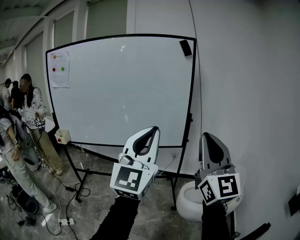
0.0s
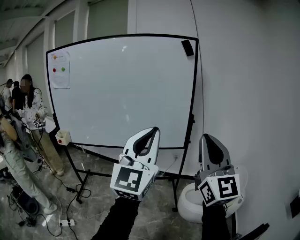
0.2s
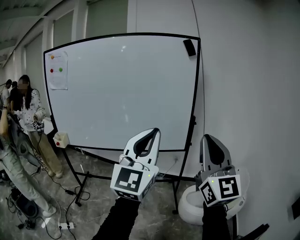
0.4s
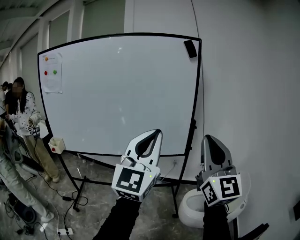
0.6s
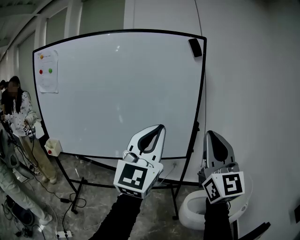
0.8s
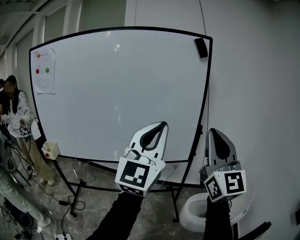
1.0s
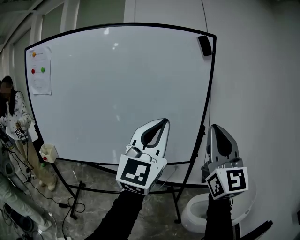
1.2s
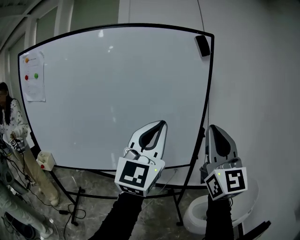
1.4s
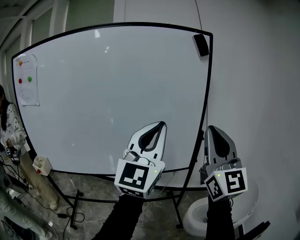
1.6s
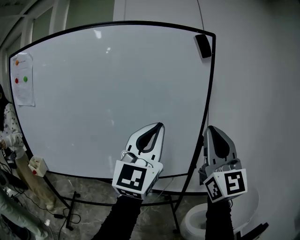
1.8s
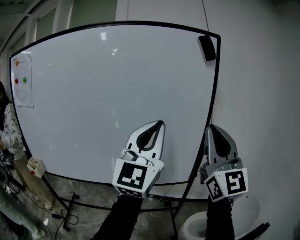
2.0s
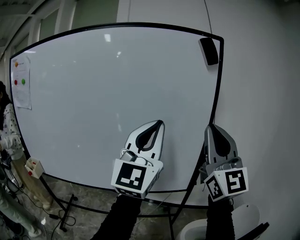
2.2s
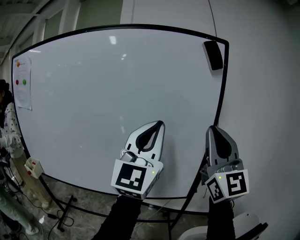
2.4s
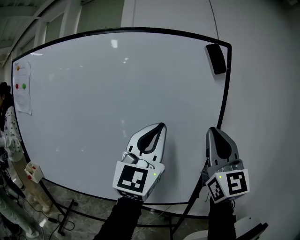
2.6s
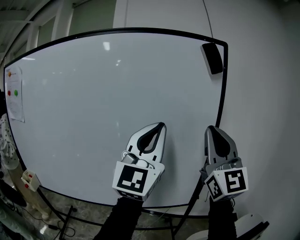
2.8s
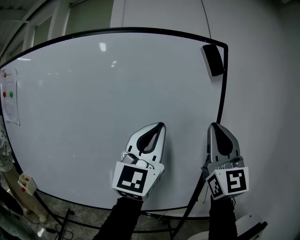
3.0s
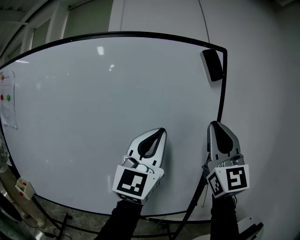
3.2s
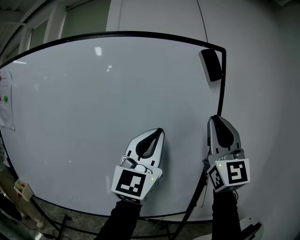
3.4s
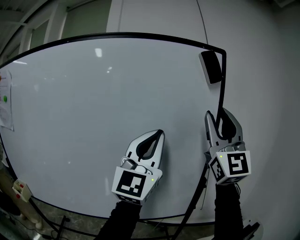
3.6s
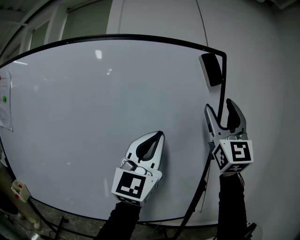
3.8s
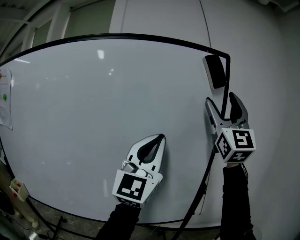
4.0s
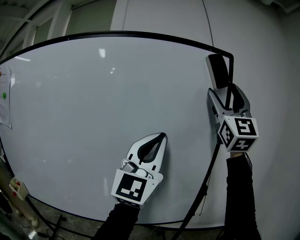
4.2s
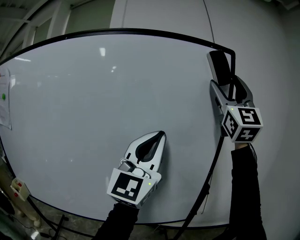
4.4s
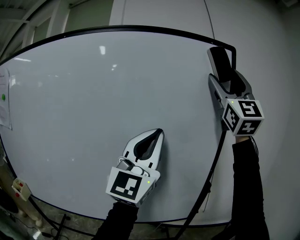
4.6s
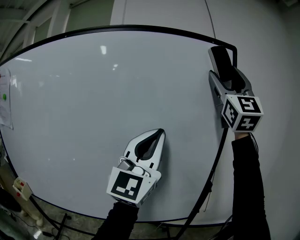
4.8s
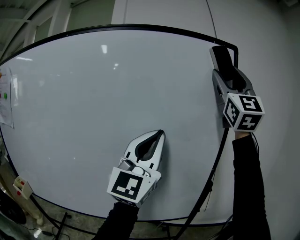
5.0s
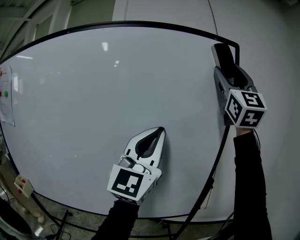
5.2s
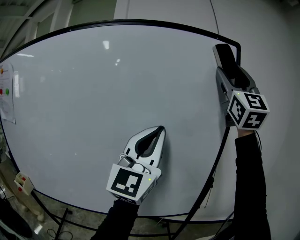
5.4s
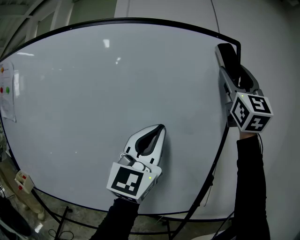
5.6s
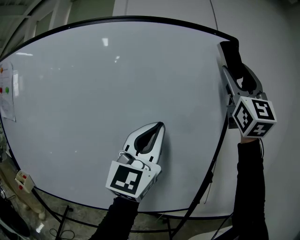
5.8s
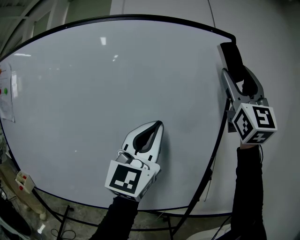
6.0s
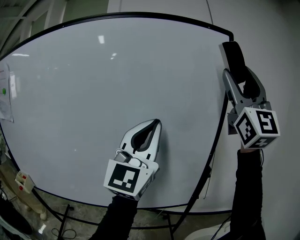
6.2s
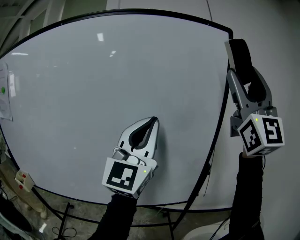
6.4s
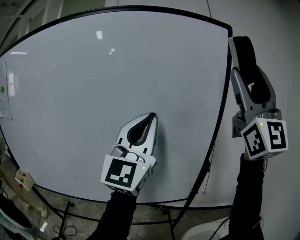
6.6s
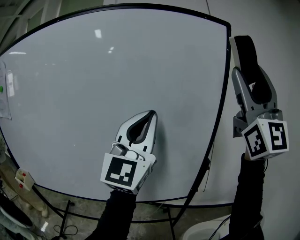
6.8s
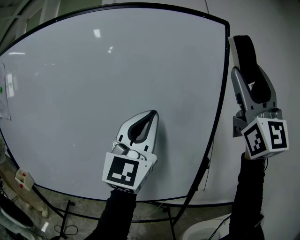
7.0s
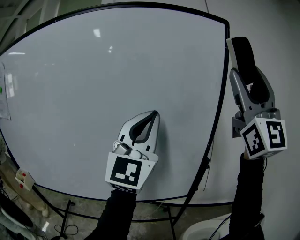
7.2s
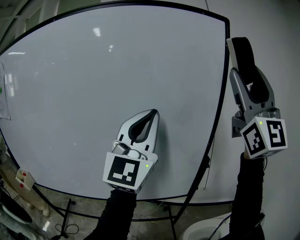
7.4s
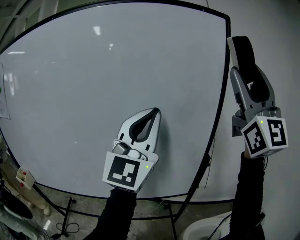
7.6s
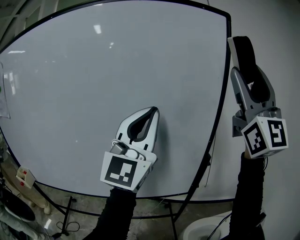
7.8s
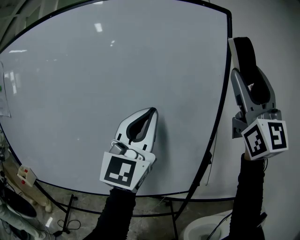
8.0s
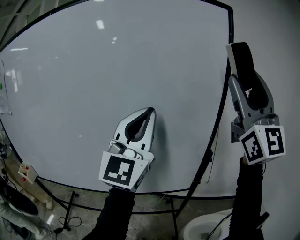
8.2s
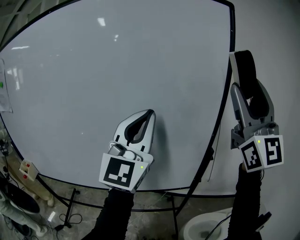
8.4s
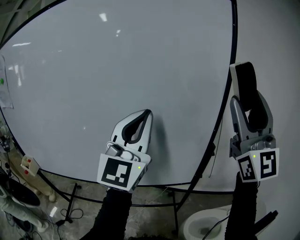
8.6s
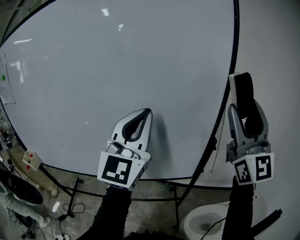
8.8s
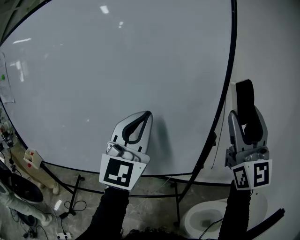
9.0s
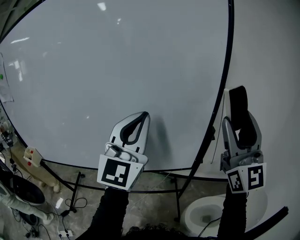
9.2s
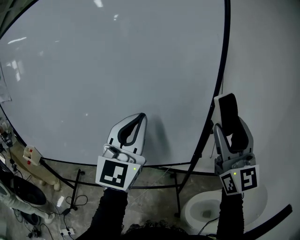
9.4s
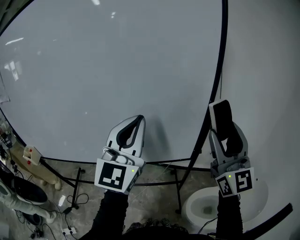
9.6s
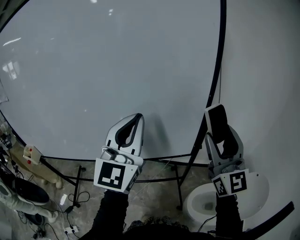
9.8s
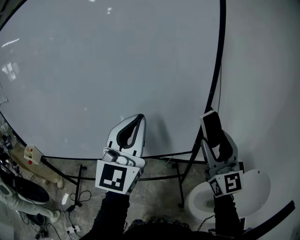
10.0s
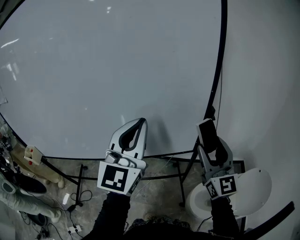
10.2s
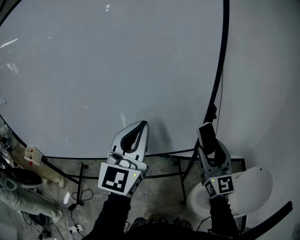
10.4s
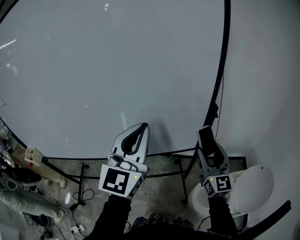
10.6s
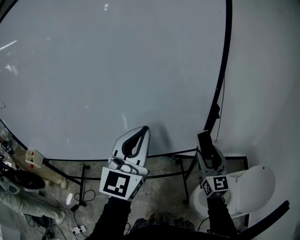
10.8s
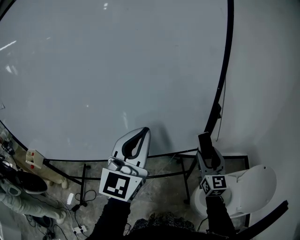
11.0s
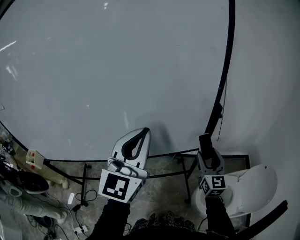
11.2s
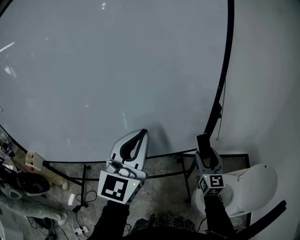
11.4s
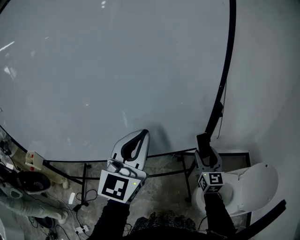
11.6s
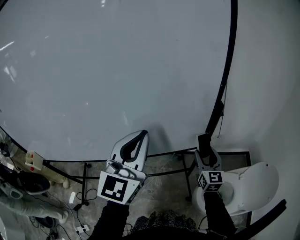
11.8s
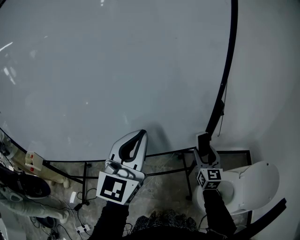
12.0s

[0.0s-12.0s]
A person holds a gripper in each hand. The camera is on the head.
0.0s to 1.6s: The grippers both shift forward by roughly 25 cm.
1.6s to 3.0s: Both grippers move forward, about 20 cm.
3.0s to 4.4s: The right gripper heads upward and forward, covering roughly 20 cm, and opens up.
4.4s to 6.0s: The right gripper travels backward by roughly 5 cm.
6.0s to 7.6s: The right gripper changes place by roughly 5 cm.
7.6s to 9.0s: The left gripper is displaced downward by some 10 cm, while the right gripper shifts some 20 cm downward.
9.0s to 10.4s: The right gripper goes roughly 25 cm downward, and turns by about 30 degrees. Meanwhile the left gripper heads downward, covering about 10 cm.
10.4s to 12.0s: The right gripper heads downward and forward, covering about 20 cm, and changes its angle by about 20 degrees.

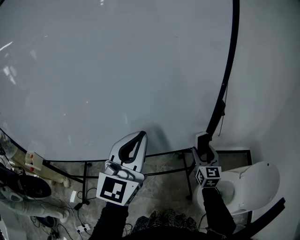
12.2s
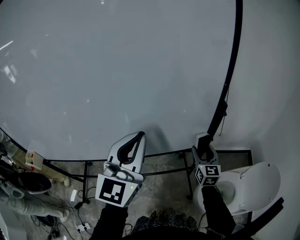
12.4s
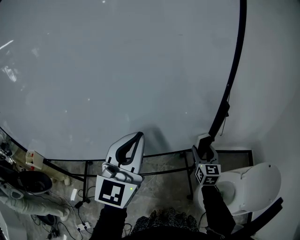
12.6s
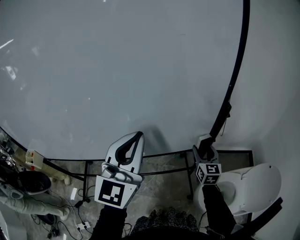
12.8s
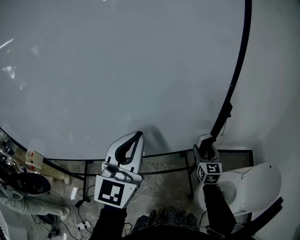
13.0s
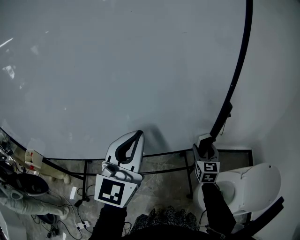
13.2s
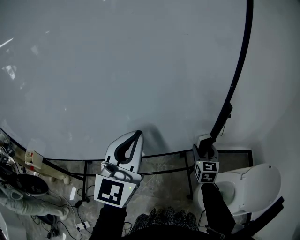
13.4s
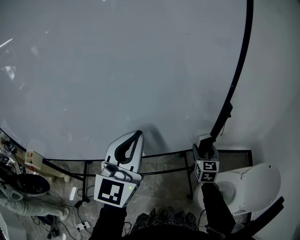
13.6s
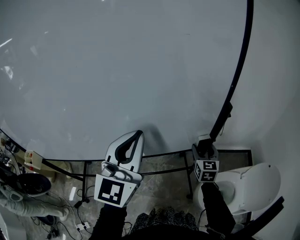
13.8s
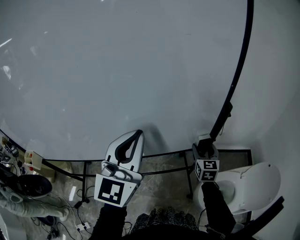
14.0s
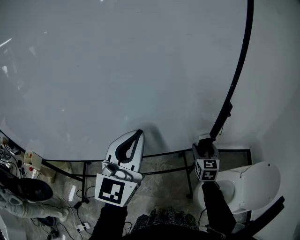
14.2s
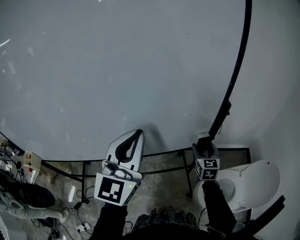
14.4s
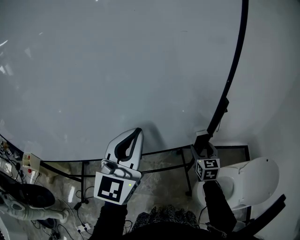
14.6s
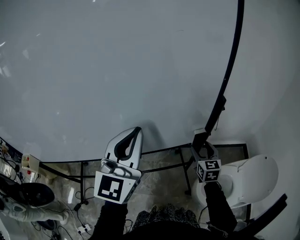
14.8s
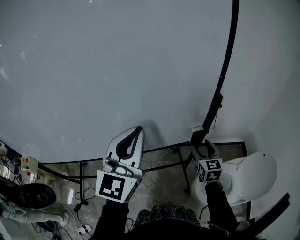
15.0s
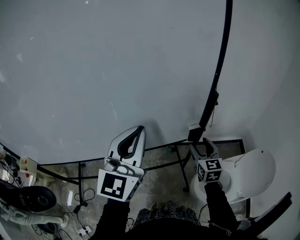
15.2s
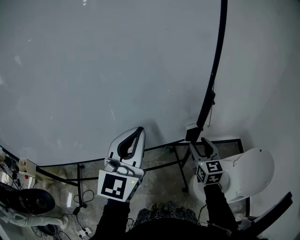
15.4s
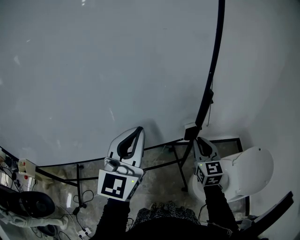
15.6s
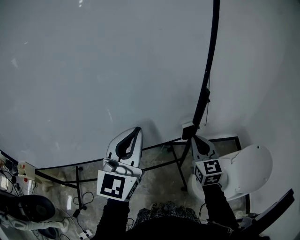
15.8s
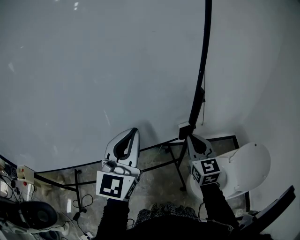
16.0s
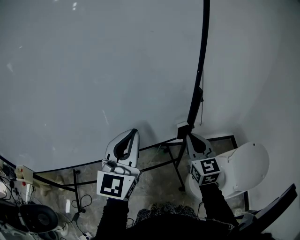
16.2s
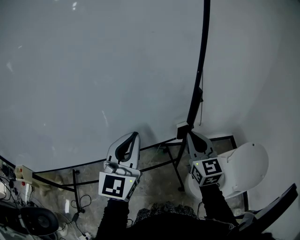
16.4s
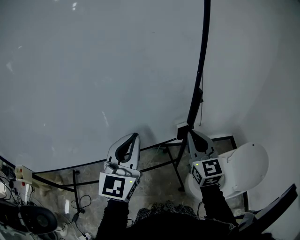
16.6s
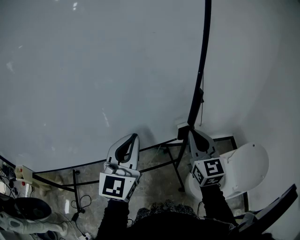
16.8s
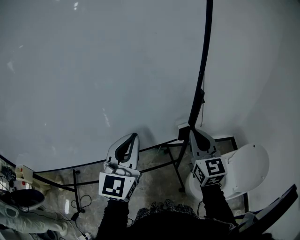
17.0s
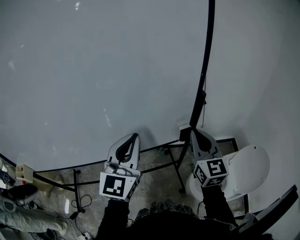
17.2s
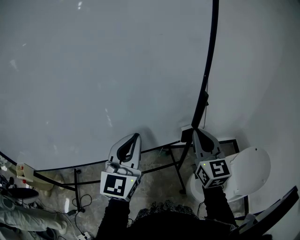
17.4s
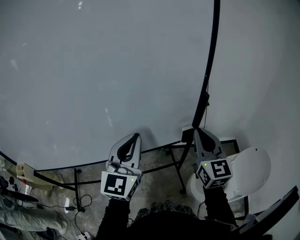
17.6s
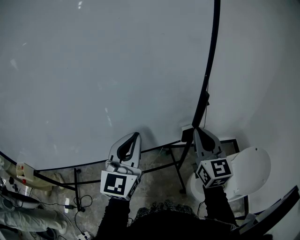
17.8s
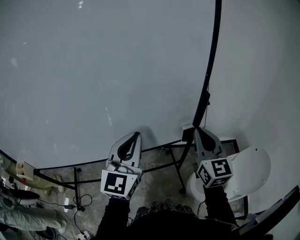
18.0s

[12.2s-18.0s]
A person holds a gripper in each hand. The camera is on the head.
12.2s to 13.6s: The grippers stay close to where they were, moving slightly.
13.6s to 15.0s: The right gripper shifts by about 5 cm.
15.0s to 16.6s: The right gripper heads upward, covering roughly 15 cm, and closes.
16.6s to 18.0s: There are only small adjustments of the grippers.

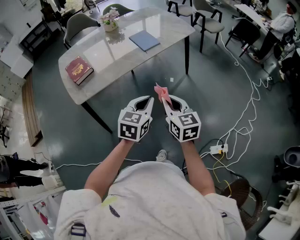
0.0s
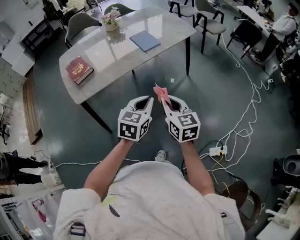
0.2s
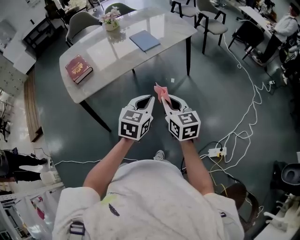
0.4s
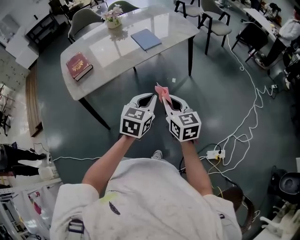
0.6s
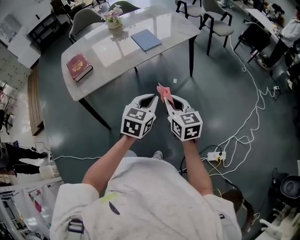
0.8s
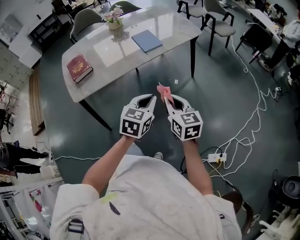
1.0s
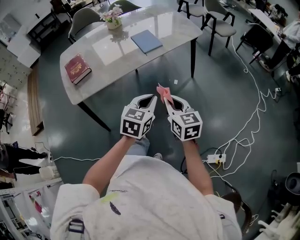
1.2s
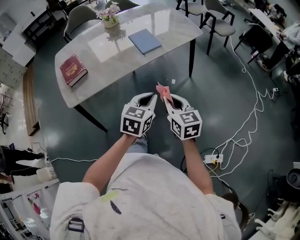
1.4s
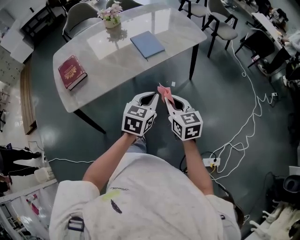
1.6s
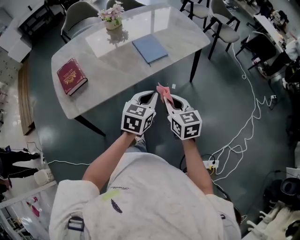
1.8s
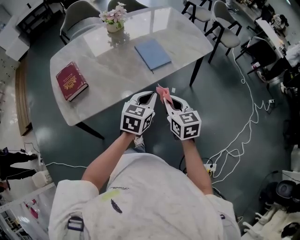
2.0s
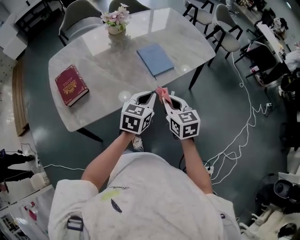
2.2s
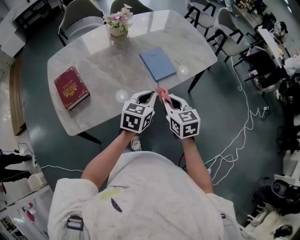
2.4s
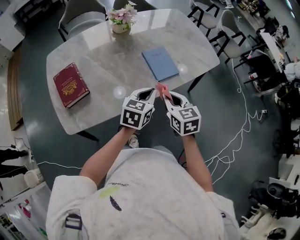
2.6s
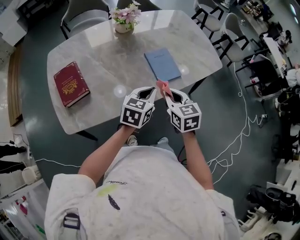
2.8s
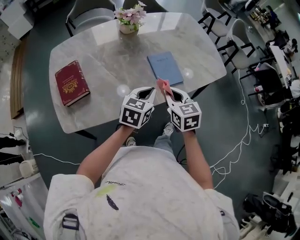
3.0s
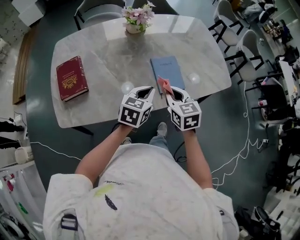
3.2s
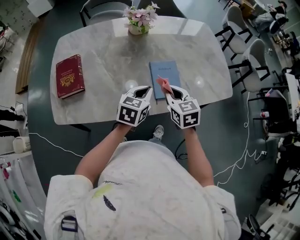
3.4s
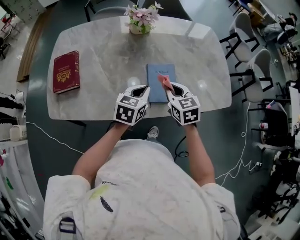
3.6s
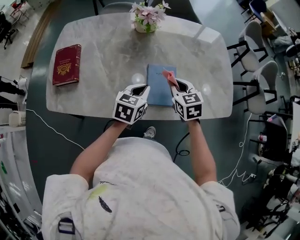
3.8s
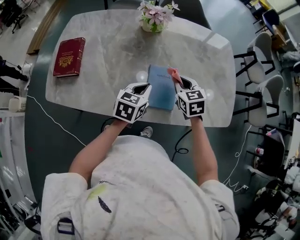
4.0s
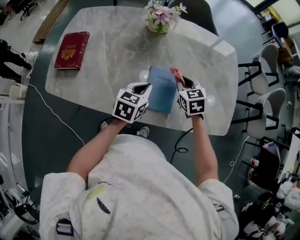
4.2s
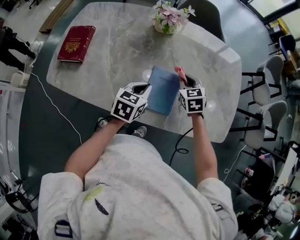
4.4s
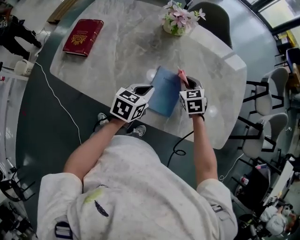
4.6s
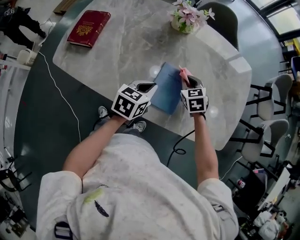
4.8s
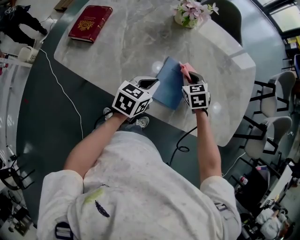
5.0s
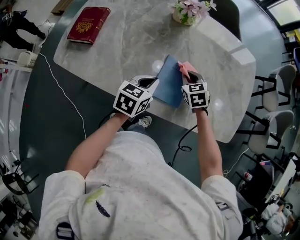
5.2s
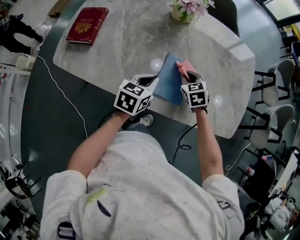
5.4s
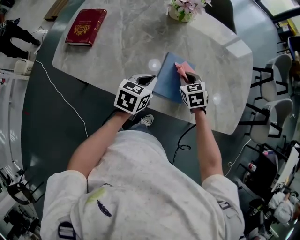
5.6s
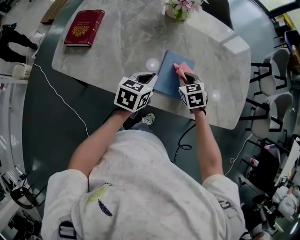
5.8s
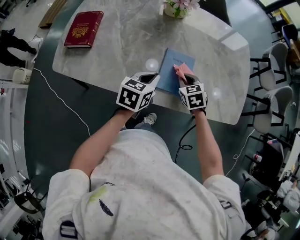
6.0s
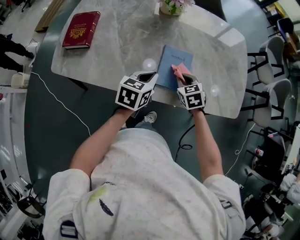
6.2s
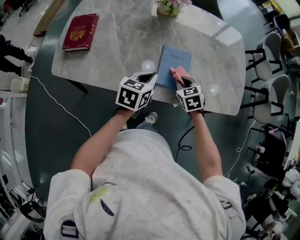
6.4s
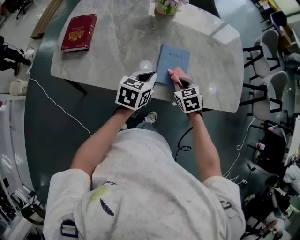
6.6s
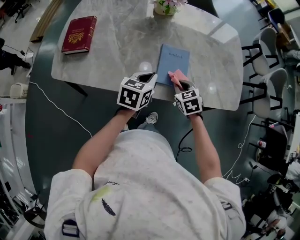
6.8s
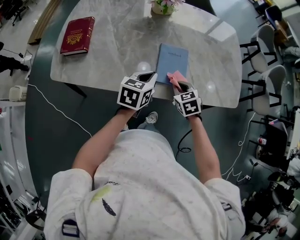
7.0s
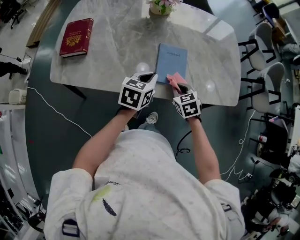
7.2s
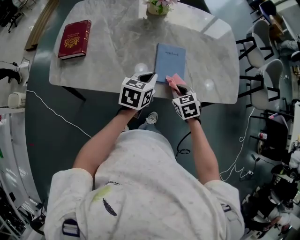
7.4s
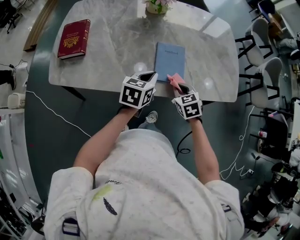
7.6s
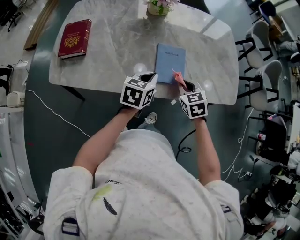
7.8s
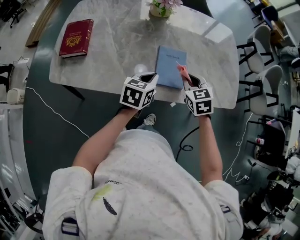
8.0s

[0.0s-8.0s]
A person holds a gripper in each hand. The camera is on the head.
0.0s to 1.6s: The grippers both shift forward by about 15 cm.
1.6s to 3.2s: The right gripper heads forward, covering about 30 cm. The left gripper shifts about 30 cm forward and to the left.
3.2s to 4.8s: The left gripper moves roughly 10 cm, and changes its angle by roughly 30 degrees. Meanwhile the right gripper shifts by approximately 25 cm, and swivels roughly 40 degrees.
4.8s to 6.4s: The left gripper shifts approximately 5 cm backward; the right gripper moves backward, some 15 cm.
6.4s to 8.0s: The right gripper moves upward, roughly 10 cm.
